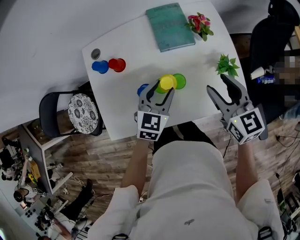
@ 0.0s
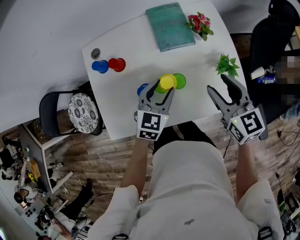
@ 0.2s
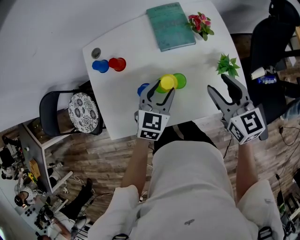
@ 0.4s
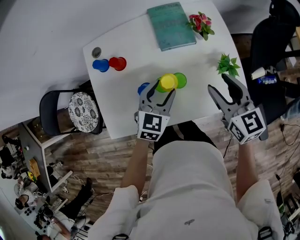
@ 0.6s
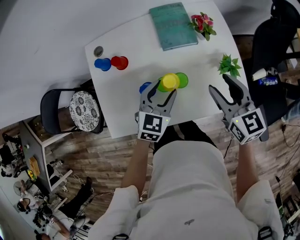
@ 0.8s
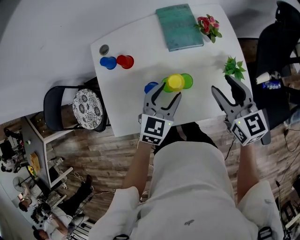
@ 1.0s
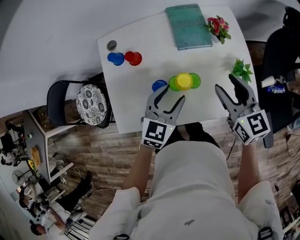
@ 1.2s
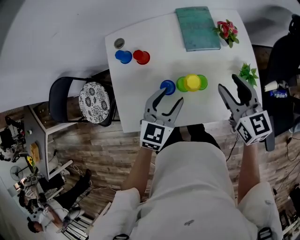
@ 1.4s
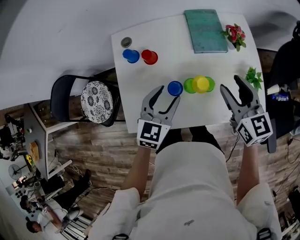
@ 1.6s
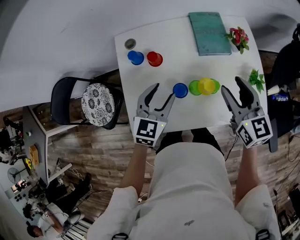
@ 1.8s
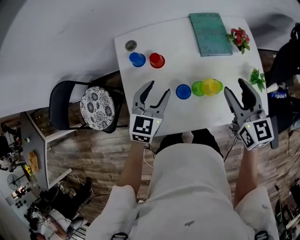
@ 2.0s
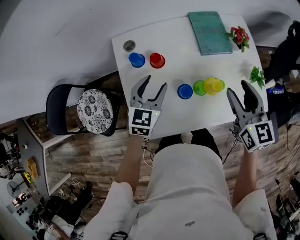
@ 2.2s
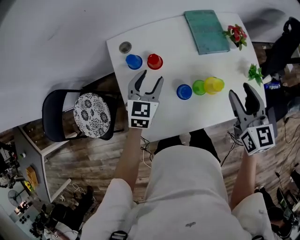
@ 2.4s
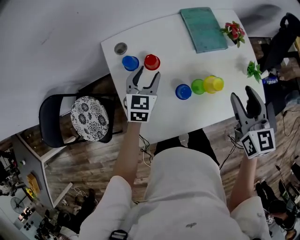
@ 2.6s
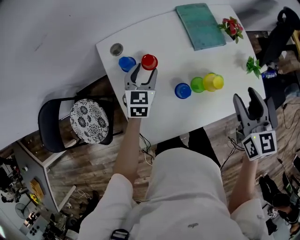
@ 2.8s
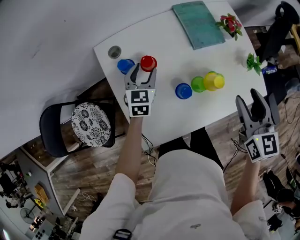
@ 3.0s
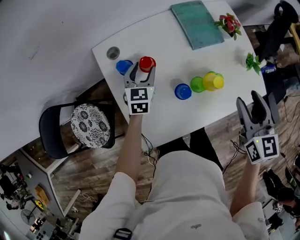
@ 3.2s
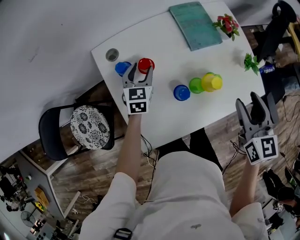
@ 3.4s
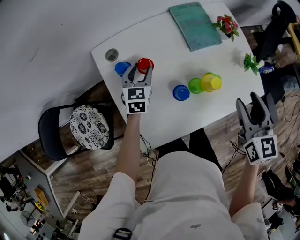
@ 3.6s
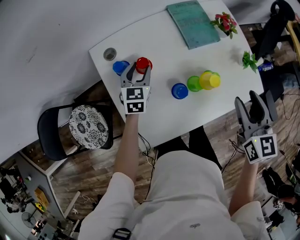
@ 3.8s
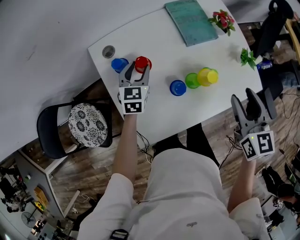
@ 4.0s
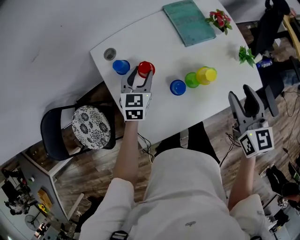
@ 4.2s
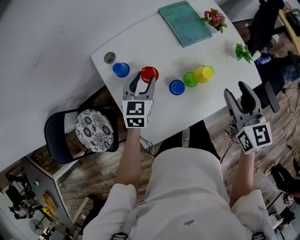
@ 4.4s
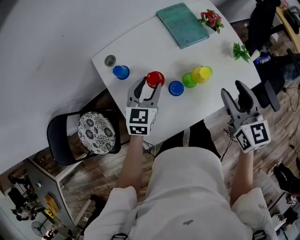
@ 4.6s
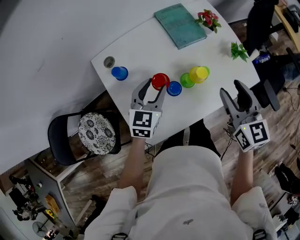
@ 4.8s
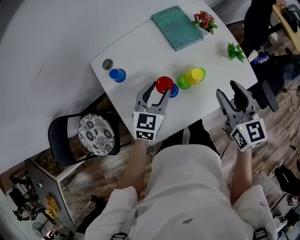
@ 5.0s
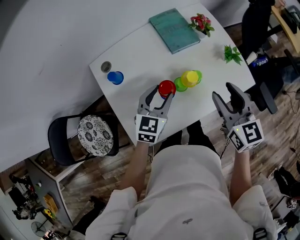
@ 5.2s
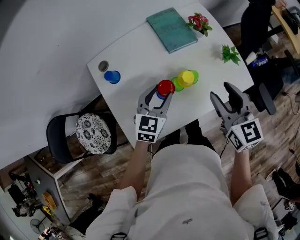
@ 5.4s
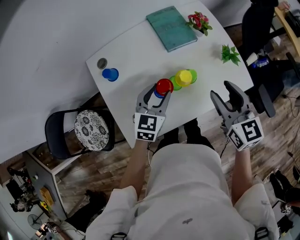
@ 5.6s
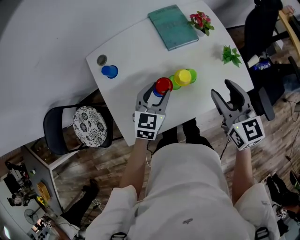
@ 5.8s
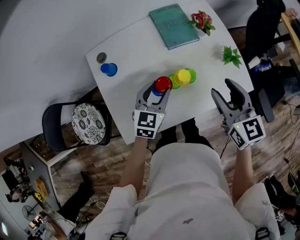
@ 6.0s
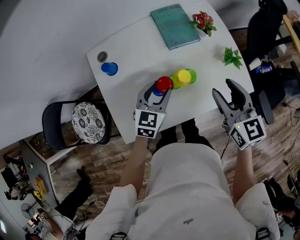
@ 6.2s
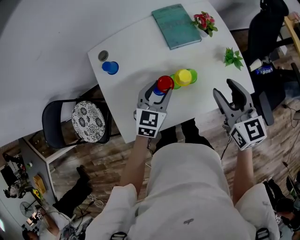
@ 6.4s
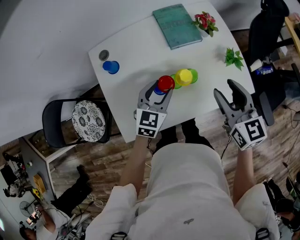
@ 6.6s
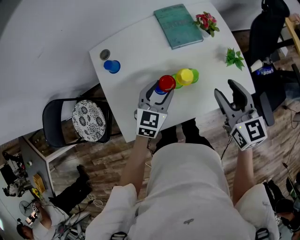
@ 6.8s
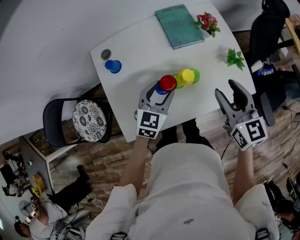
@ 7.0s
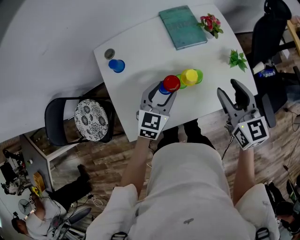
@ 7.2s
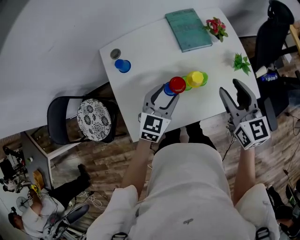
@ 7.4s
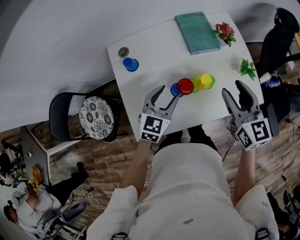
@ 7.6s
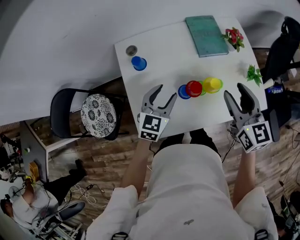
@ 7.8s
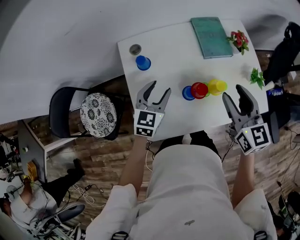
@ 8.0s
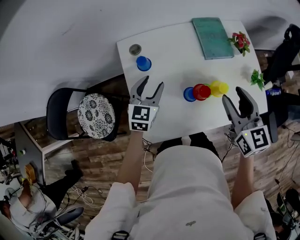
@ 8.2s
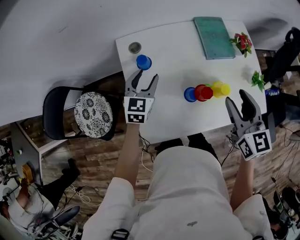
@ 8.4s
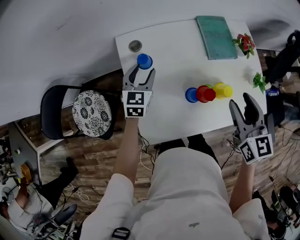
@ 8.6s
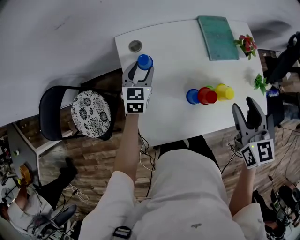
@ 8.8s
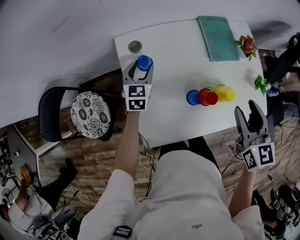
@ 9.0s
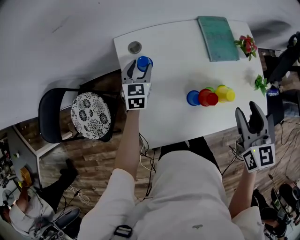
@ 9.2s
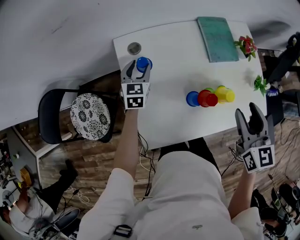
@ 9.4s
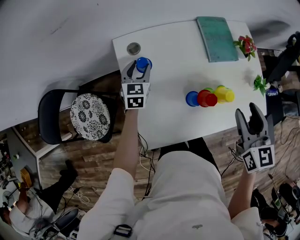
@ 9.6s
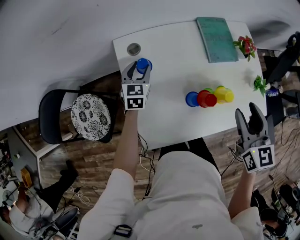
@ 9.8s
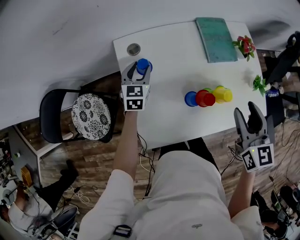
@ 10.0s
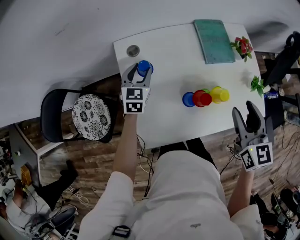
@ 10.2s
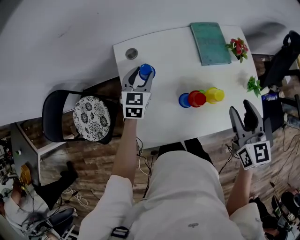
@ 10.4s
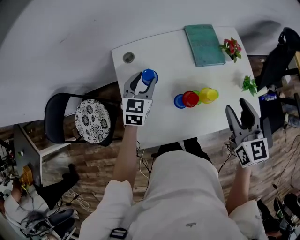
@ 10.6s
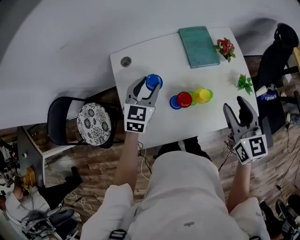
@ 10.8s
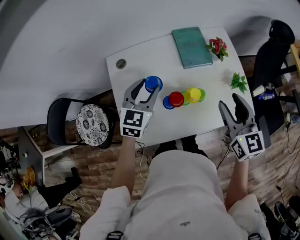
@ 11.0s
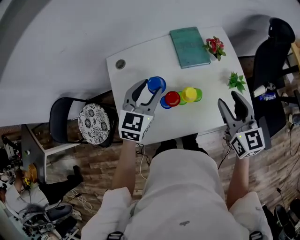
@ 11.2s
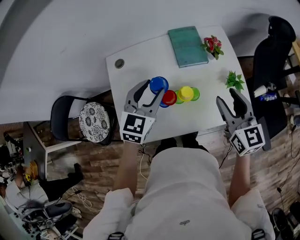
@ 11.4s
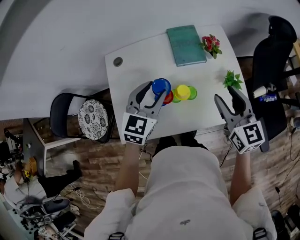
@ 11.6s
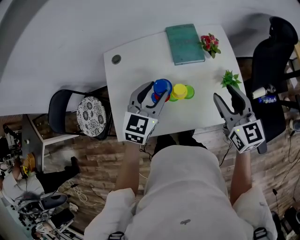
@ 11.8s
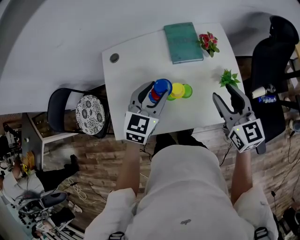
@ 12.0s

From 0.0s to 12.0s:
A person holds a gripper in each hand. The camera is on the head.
From 0.0s to 1.6s: The two grippers go about 10 cm to the left.
From 1.6s to 3.0s: The right gripper is displaced backward by about 5 cm, and swivels about 30 degrees. The left gripper moves forward, to the left and downward, roughly 20 cm.
From 3.0s to 4.4s: The left gripper moves roughly 10 cm.
From 4.4s to 6.0s: The left gripper moves to the right, approximately 15 cm; the right gripper goes approximately 5 cm to the right.
From 6.0s to 7.6s: The left gripper ends up about 5 cm from where it was.
From 7.6s to 9.0s: The right gripper travels to the left by about 5 cm. The left gripper travels to the left and forward by roughly 25 cm.
From 9.0s to 10.4s: The left gripper changes place by some 5 cm.
From 10.4s to 12.0s: The right gripper is displaced to the right by about 15 cm, while the left gripper shifts roughly 30 cm to the right, backward and upward.

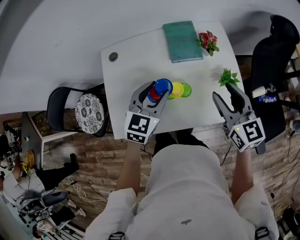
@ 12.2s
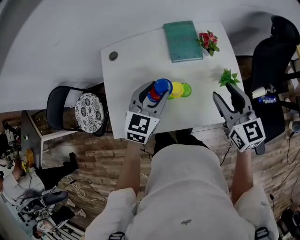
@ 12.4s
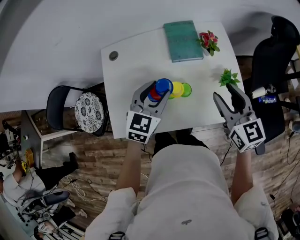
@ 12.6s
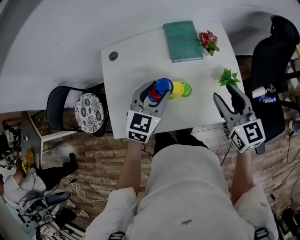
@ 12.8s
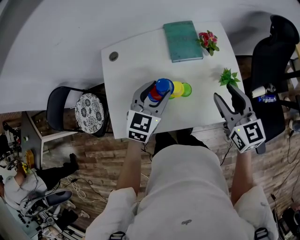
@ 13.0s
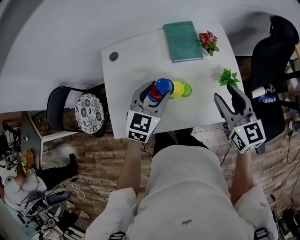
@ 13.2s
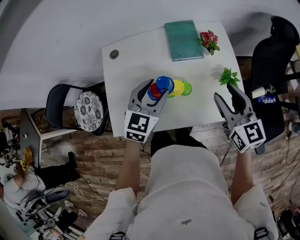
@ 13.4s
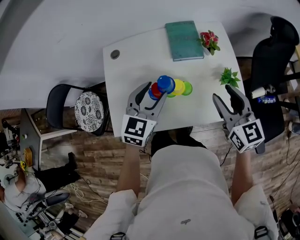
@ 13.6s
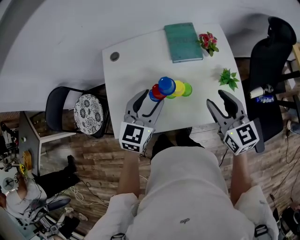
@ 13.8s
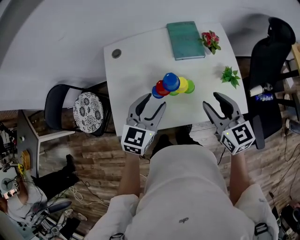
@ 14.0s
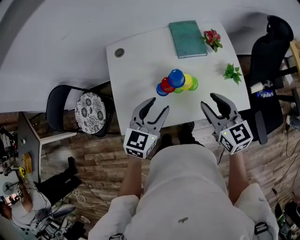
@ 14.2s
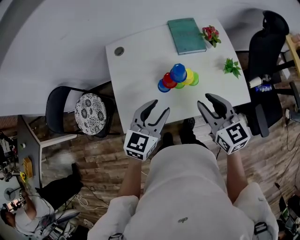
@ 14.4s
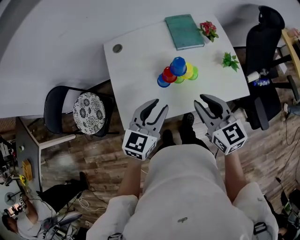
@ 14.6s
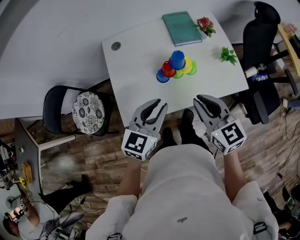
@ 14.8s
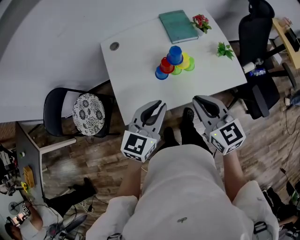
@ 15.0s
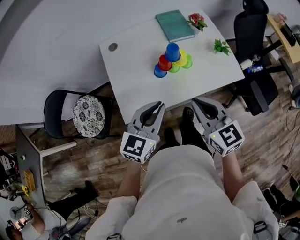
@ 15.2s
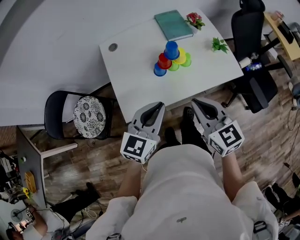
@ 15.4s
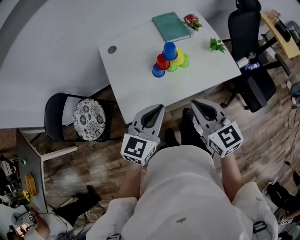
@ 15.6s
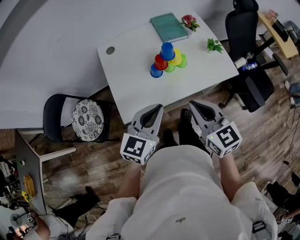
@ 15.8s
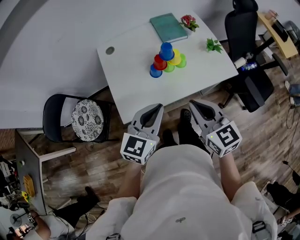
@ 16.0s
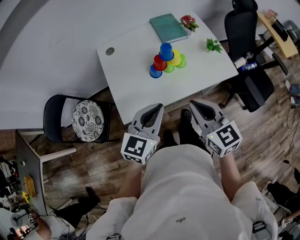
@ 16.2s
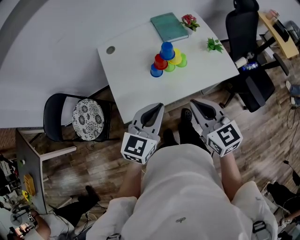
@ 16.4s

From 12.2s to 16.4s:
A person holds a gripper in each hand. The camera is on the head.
From 12.2s to 13.6s: The grippers make only small movements.
From 13.6s to 15.0s: The right gripper is displaced to the left and backward by about 25 cm, and closes up, while the left gripper heads backward, covering approximately 15 cm, and closes its fingers.
From 15.0s to 16.4s: The grippers both shift backward by roughly 5 cm.

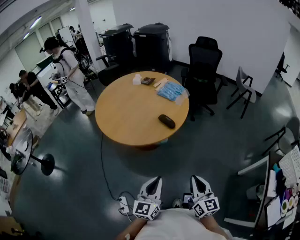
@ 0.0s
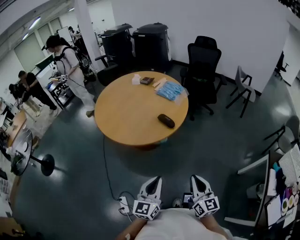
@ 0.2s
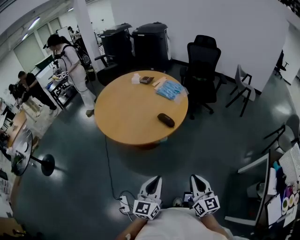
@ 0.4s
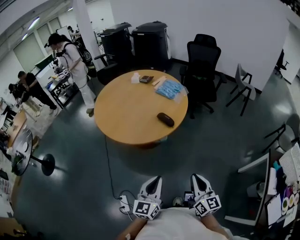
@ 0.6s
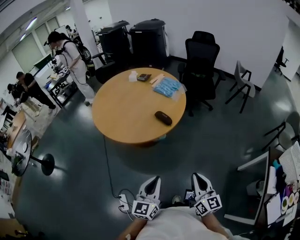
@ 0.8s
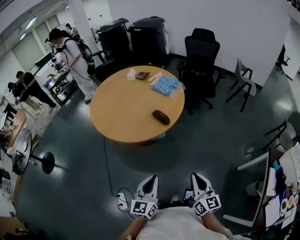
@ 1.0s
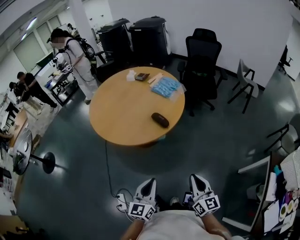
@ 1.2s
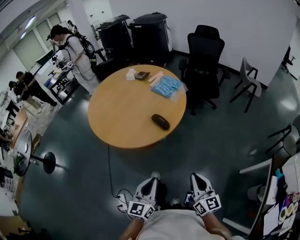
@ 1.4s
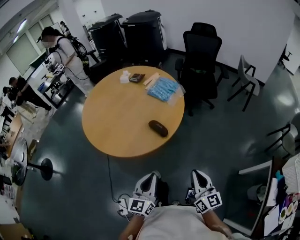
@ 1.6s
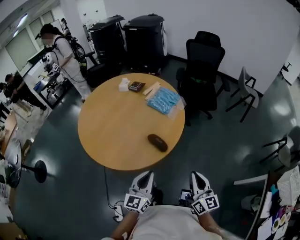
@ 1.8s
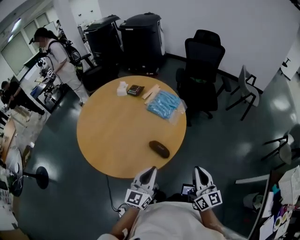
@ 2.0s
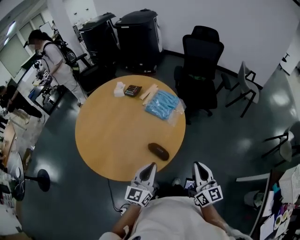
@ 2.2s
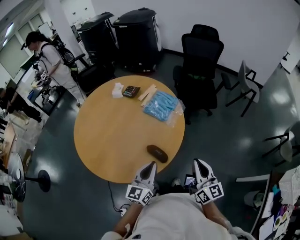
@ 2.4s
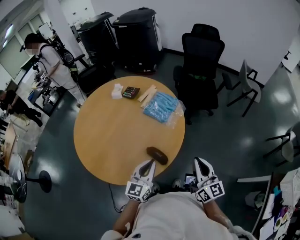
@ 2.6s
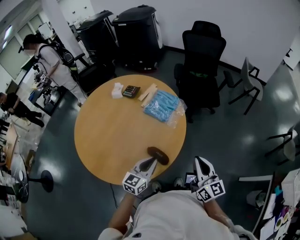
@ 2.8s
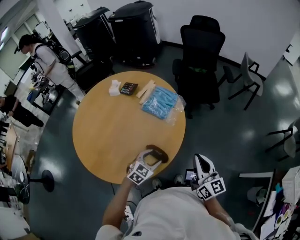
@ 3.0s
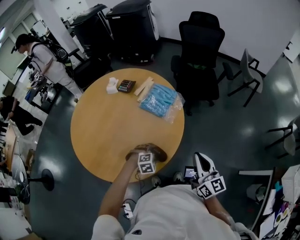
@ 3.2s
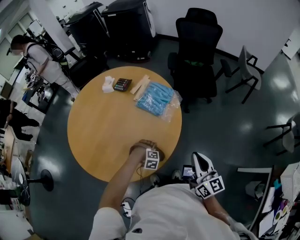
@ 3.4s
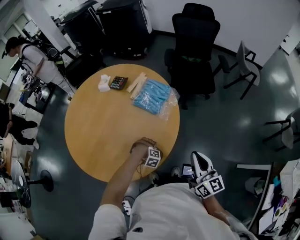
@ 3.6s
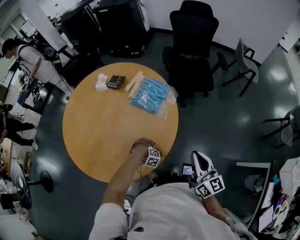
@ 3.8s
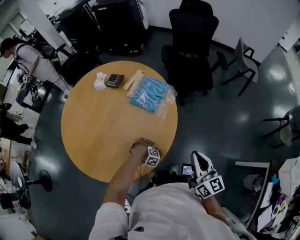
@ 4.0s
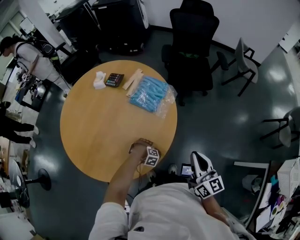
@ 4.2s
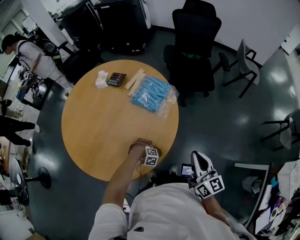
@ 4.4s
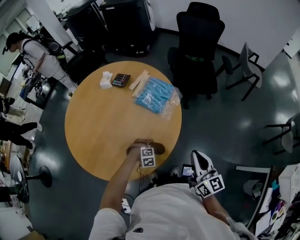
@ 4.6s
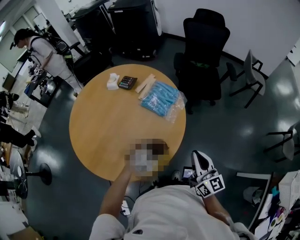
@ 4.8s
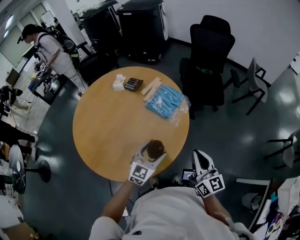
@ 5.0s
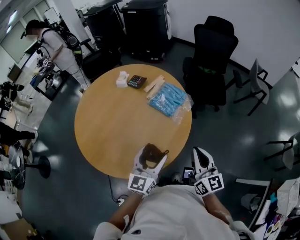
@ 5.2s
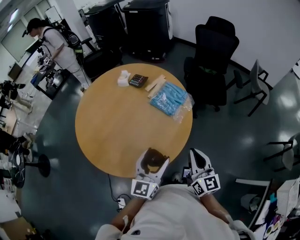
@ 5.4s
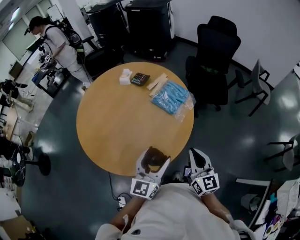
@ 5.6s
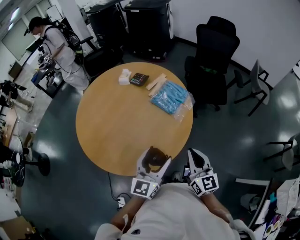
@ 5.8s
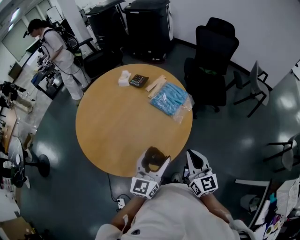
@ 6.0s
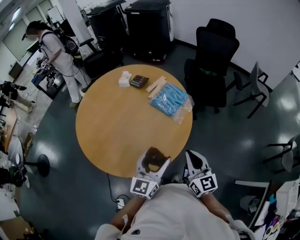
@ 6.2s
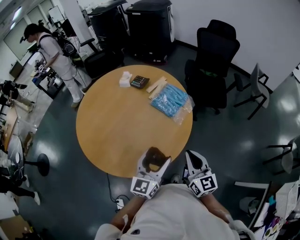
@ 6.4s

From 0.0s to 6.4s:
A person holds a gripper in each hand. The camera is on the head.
From 0.0s to 1.6s: The left gripper moves forward, approximately 15 cm; the right gripper moves forward and to the right, approximately 20 cm.
From 1.6s to 3.2s: The right gripper goes about 30 cm forward, while the left gripper heads forward and downward, covering about 40 cm, tilts its fingers some 70 degrees downward, and opens up.
From 3.2s to 4.8s: The left gripper goes downward and returns, about 15 cm each way, and turns by some 30 degrees.
From 4.8s to 6.4s: The right gripper moves to the left, roughly 5 cm, while the left gripper shifts about 20 cm upward, and tilts its fingers roughly 50 degrees upward.

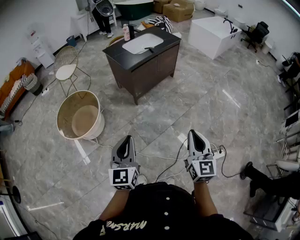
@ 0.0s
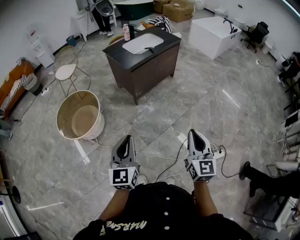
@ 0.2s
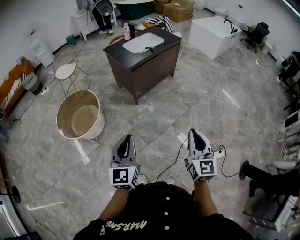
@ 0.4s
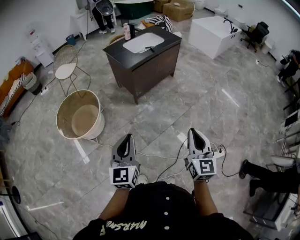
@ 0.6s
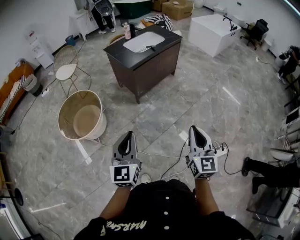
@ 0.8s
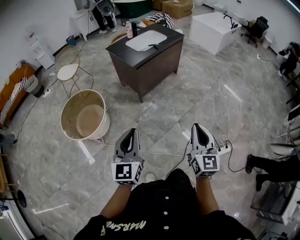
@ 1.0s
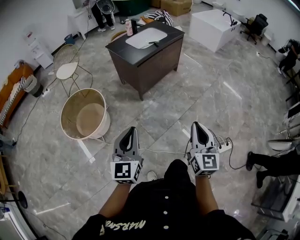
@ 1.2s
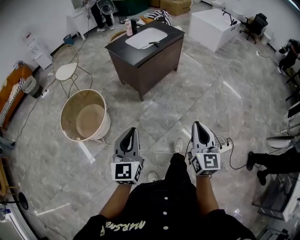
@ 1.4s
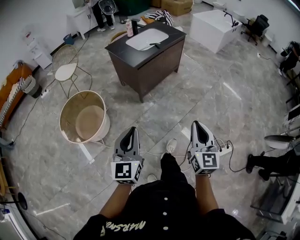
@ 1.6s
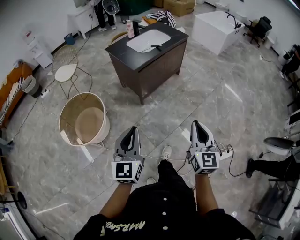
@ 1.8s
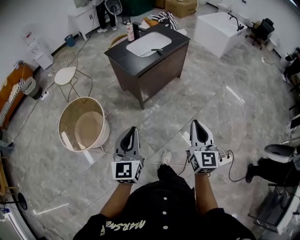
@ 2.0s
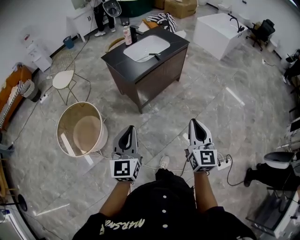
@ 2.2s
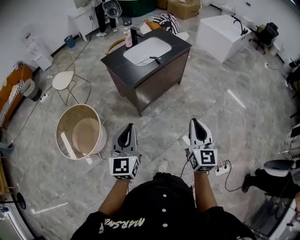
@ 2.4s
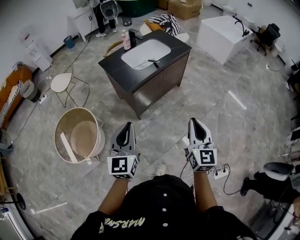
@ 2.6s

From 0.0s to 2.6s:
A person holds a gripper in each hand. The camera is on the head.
From 0.0s to 1.2s: Both grippers travel together to the left, about 5 cm.
From 1.2s to 2.6s: The grippers both shift forward by roughly 35 cm.
